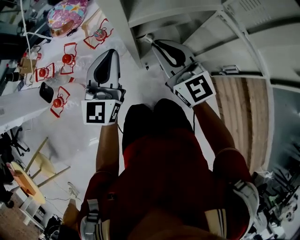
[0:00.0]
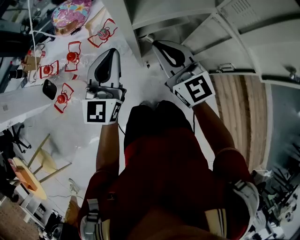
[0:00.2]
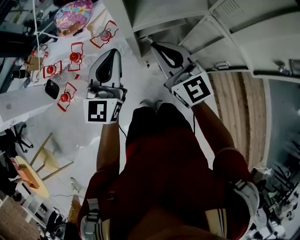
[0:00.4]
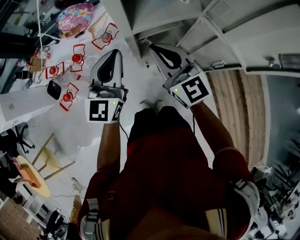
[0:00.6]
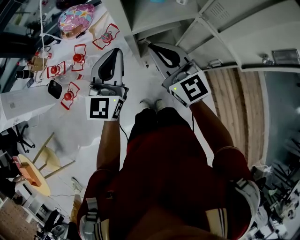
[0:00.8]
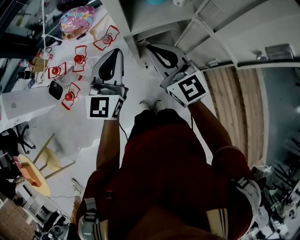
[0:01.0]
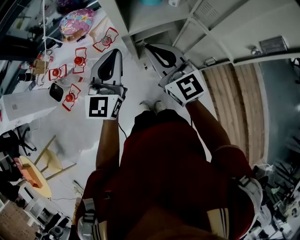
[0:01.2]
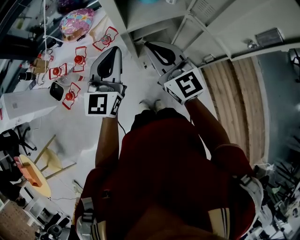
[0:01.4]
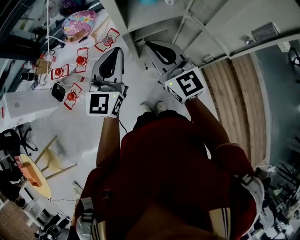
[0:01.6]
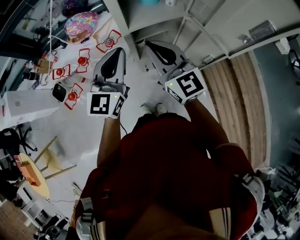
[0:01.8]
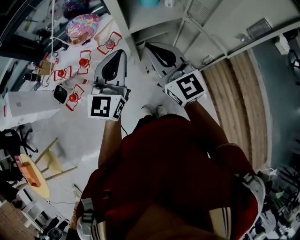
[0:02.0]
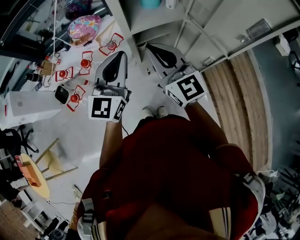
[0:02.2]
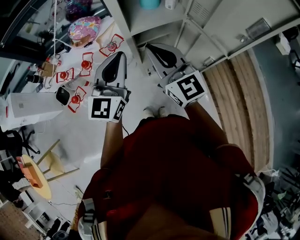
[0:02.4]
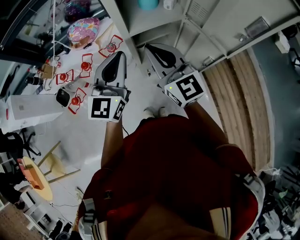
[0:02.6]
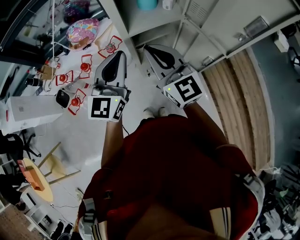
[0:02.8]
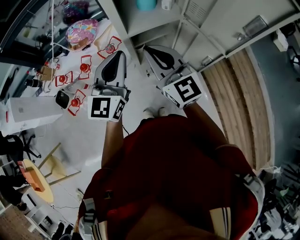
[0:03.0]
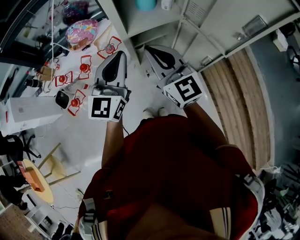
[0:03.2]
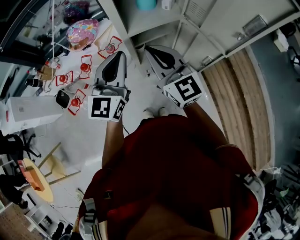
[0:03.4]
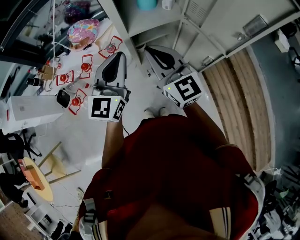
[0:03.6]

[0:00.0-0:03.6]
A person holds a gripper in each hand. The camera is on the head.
0:00.0 to 0:01.8: The grippers both shift upward and backward by roughly 20 cm.
0:01.8 to 0:03.6: There are only small adjustments of the grippers.

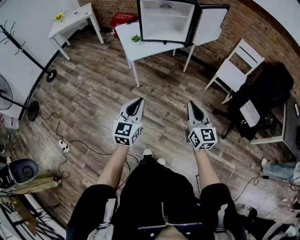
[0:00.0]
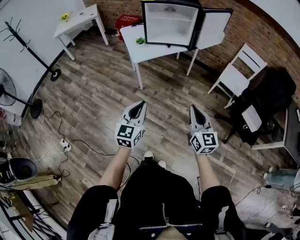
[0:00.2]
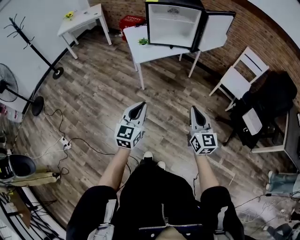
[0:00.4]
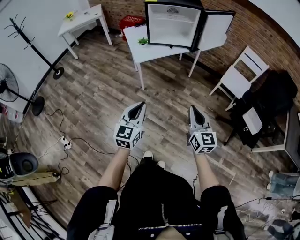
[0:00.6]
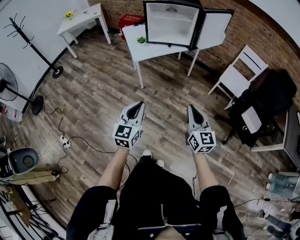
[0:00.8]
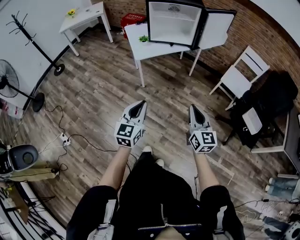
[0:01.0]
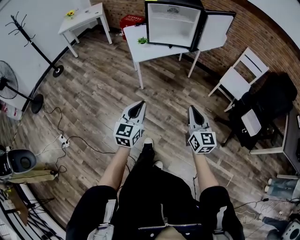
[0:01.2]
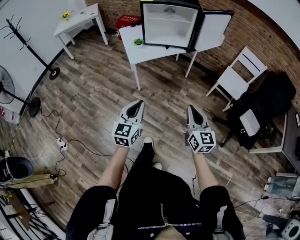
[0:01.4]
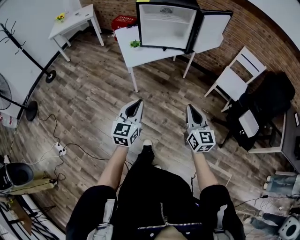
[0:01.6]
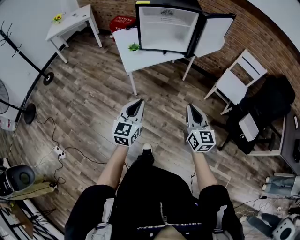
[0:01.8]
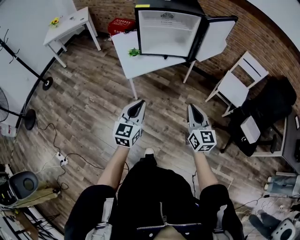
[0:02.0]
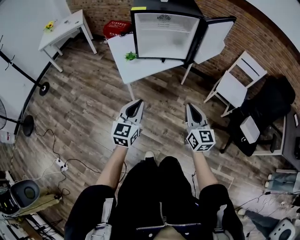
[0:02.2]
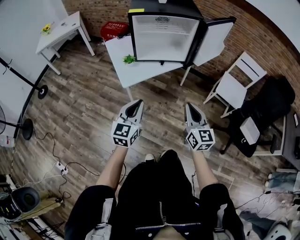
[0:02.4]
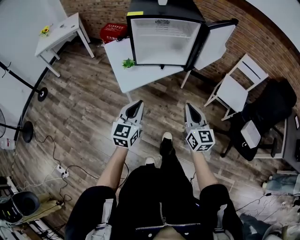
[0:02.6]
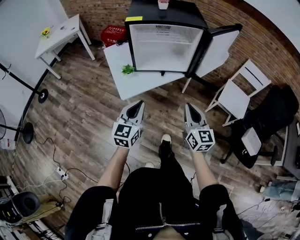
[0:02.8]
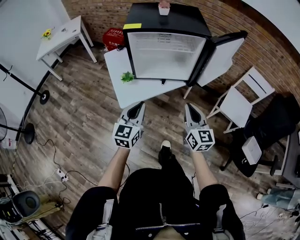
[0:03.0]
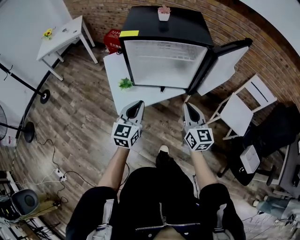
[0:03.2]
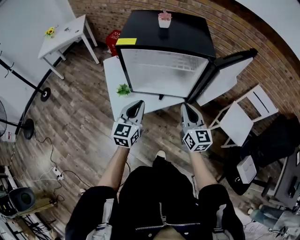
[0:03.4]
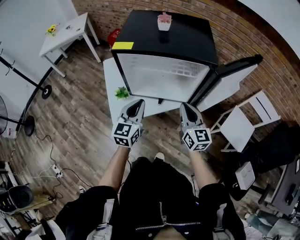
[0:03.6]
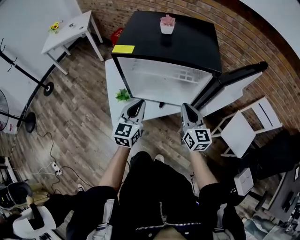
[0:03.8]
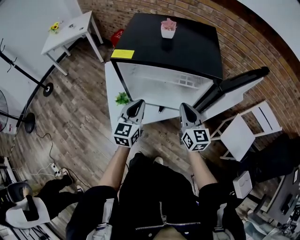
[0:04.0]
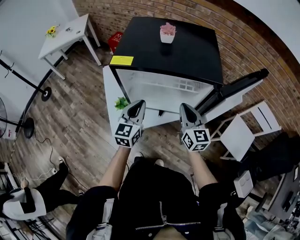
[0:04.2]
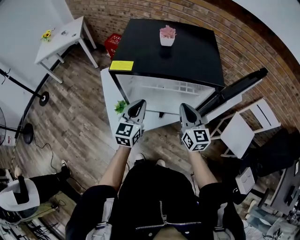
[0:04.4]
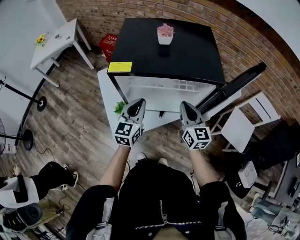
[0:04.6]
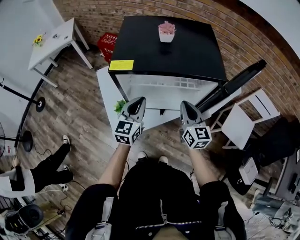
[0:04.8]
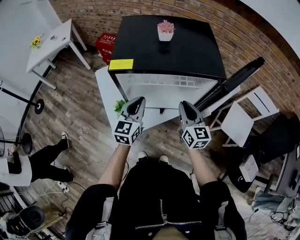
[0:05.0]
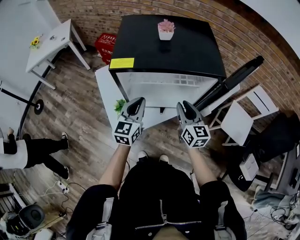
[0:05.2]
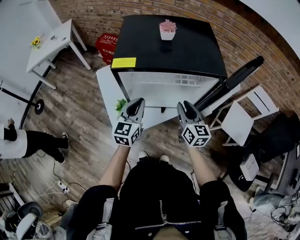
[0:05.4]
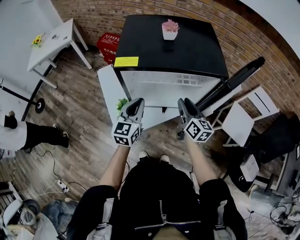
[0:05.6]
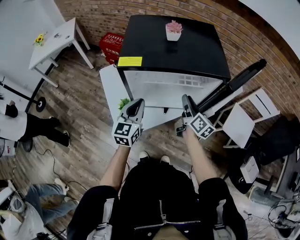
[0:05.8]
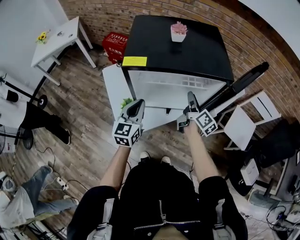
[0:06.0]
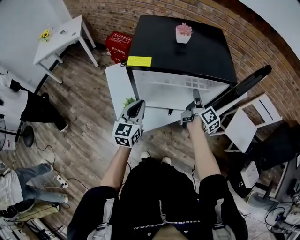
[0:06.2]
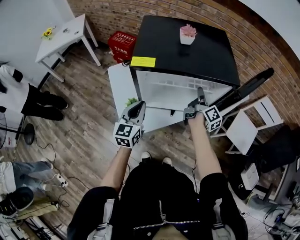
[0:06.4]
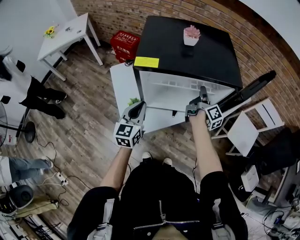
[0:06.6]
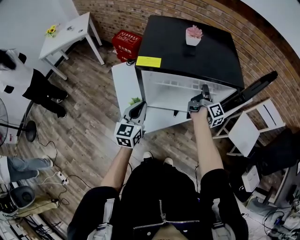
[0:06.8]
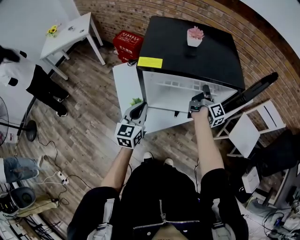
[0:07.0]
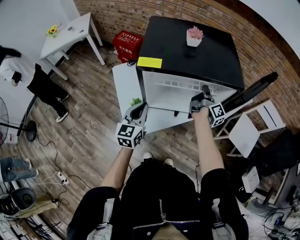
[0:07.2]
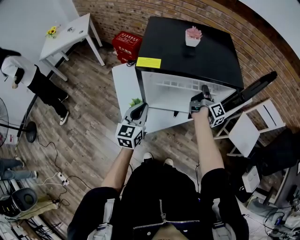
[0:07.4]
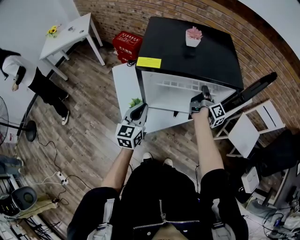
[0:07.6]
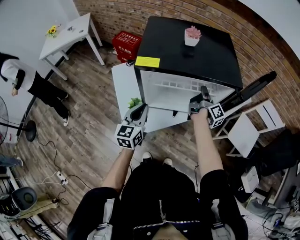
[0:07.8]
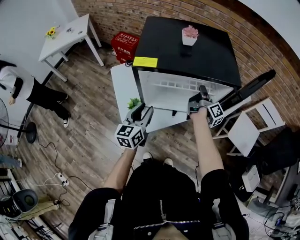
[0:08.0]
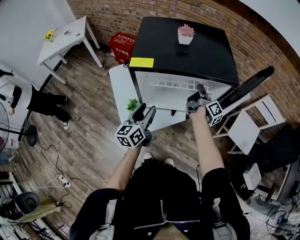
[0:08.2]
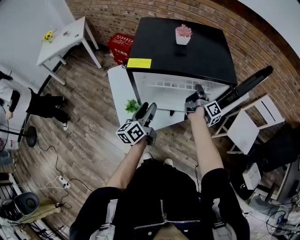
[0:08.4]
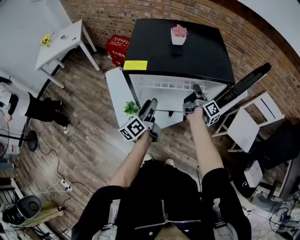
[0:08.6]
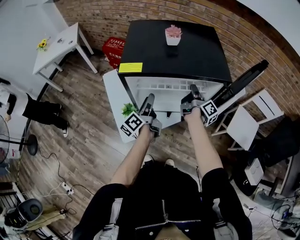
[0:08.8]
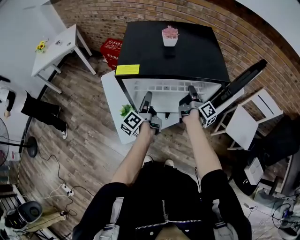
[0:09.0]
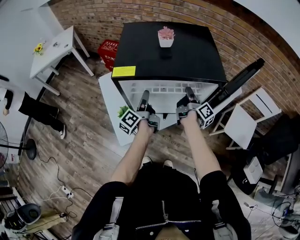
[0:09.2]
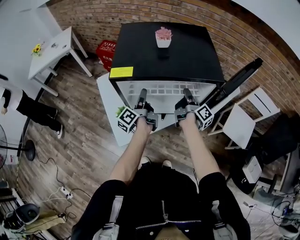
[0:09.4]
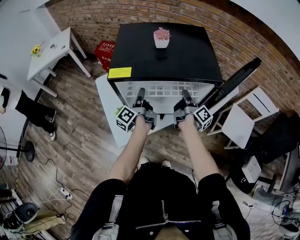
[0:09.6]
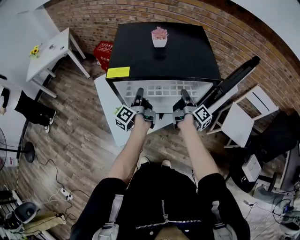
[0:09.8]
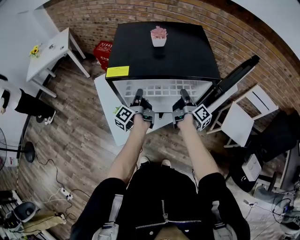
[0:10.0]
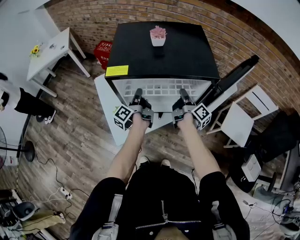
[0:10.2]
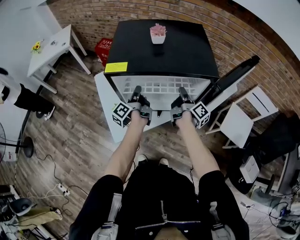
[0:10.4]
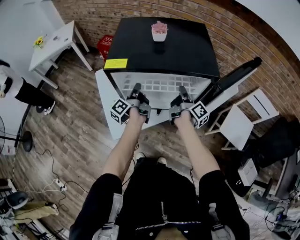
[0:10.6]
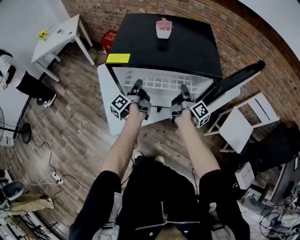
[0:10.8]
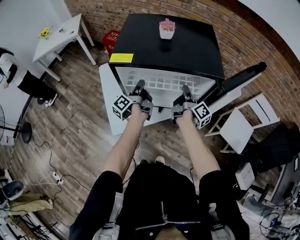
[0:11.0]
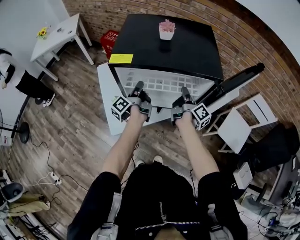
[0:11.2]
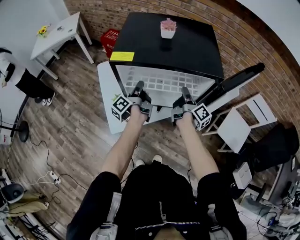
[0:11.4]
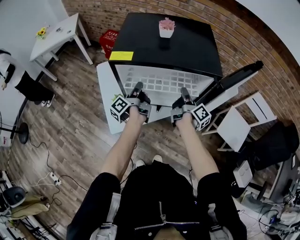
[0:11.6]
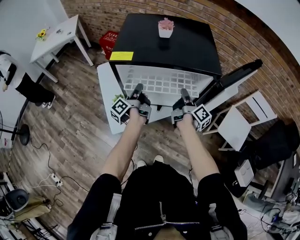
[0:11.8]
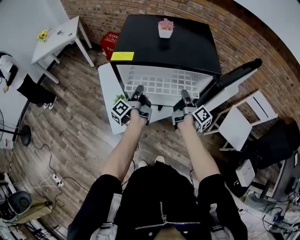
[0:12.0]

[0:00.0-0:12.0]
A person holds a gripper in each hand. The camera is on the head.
0:00.0 to 0:01.6: The two grippers go about 5 cm forward.
0:01.6 to 0:03.0: The two grippers go about 35 cm forward.
0:03.0 to 0:04.4: The two grippers go some 25 cm forward.
0:04.4 to 0:06.0: The left gripper moves to the left, about 5 cm. Meanwhile the right gripper changes place by approximately 5 cm, rolls clockwise, seen from behind, by about 50 degrees, and opens.
0:06.0 to 0:07.6: The right gripper is displaced forward by approximately 5 cm, changes its angle by roughly 30 degrees, and closes.
0:07.6 to 0:09.0: The left gripper travels forward by some 10 cm, rolls counterclockwise, seen from behind, by some 60 degrees, and opens.
0:09.0 to 0:10.4: The left gripper closes up.
0:10.4 to 0:12.0: The grippers make only small movements.

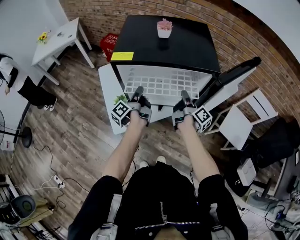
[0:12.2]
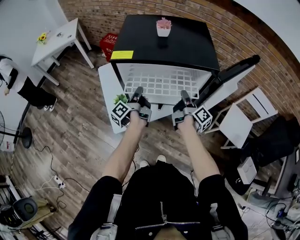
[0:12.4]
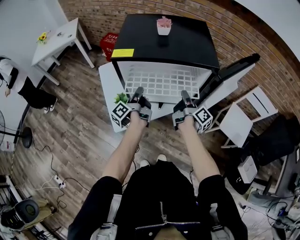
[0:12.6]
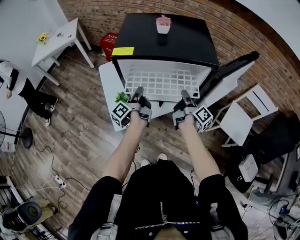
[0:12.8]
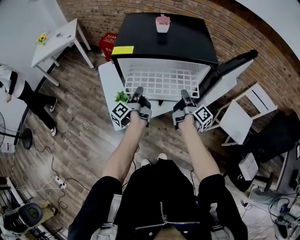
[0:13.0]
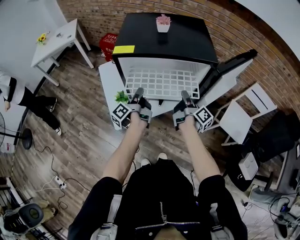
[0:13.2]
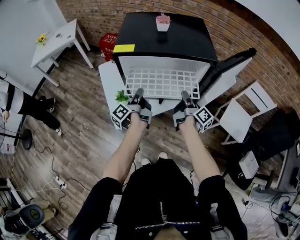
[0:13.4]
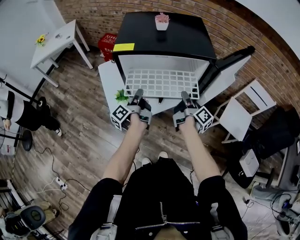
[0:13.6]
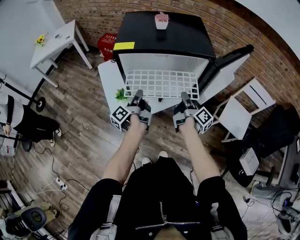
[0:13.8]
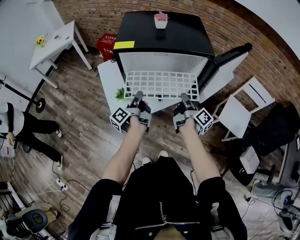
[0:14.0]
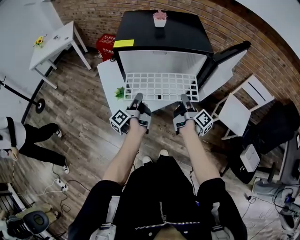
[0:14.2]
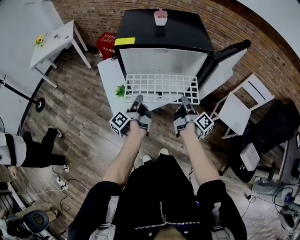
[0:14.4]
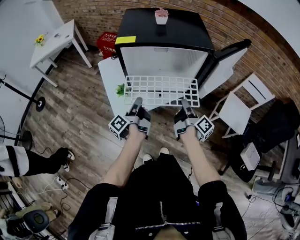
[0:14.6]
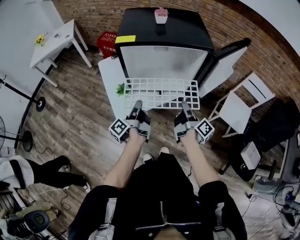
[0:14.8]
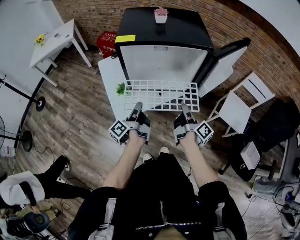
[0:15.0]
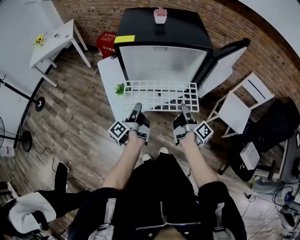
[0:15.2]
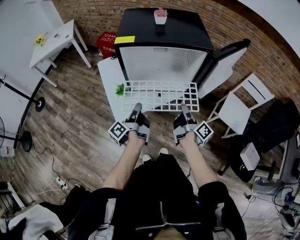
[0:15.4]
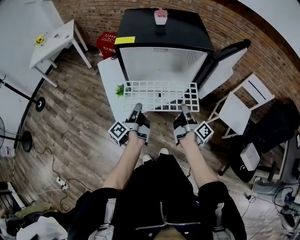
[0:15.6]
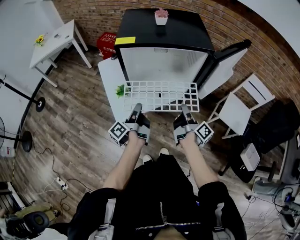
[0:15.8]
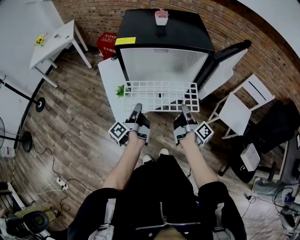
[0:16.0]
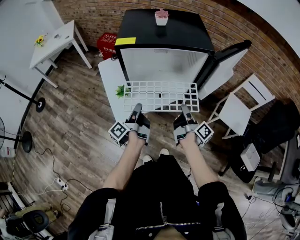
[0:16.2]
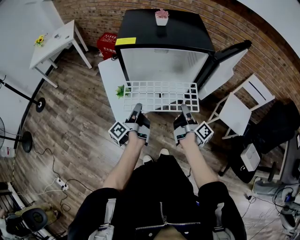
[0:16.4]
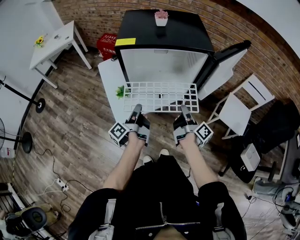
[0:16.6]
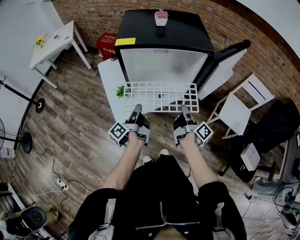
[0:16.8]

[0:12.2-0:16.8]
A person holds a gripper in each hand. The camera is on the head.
0:12.2 to 0:13.8: The grippers both shift backward by some 10 cm.
0:13.8 to 0:15.2: Both grippers move backward, roughly 10 cm.
0:15.2 to 0:16.8: Neither gripper changes place.

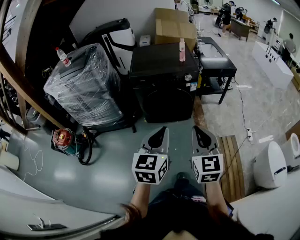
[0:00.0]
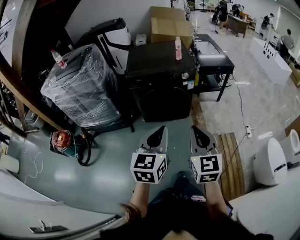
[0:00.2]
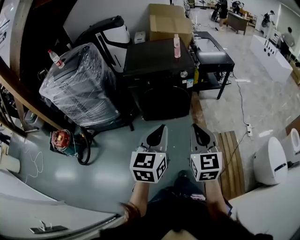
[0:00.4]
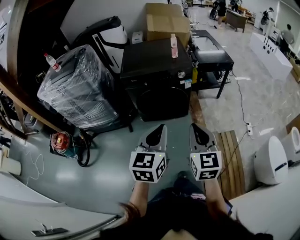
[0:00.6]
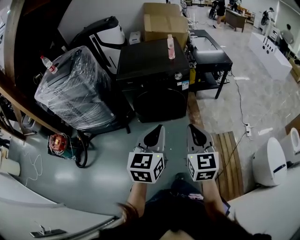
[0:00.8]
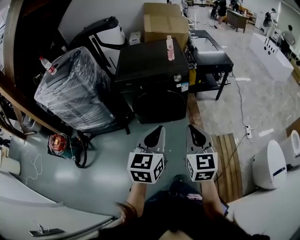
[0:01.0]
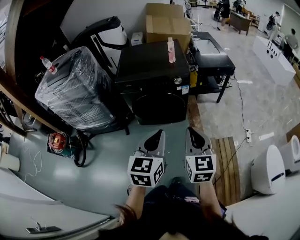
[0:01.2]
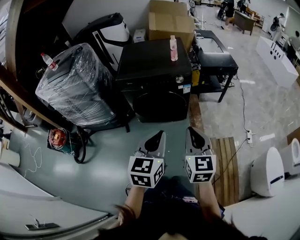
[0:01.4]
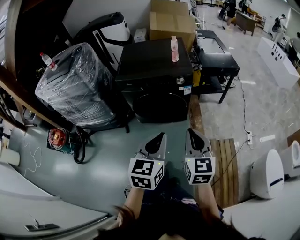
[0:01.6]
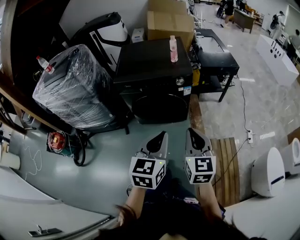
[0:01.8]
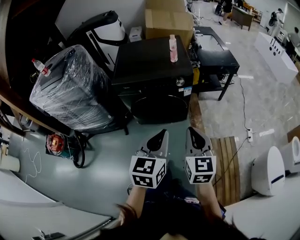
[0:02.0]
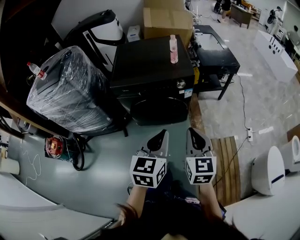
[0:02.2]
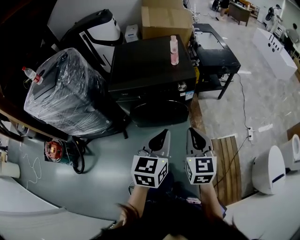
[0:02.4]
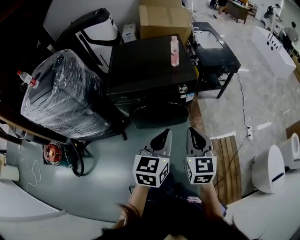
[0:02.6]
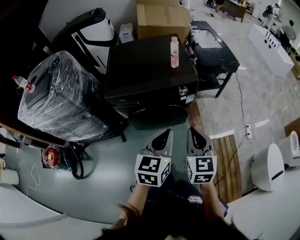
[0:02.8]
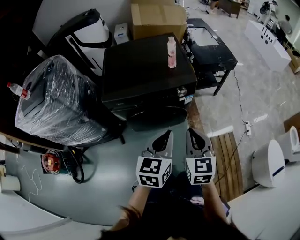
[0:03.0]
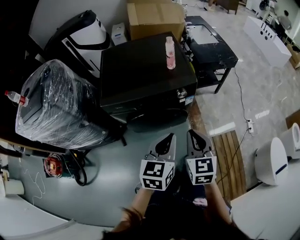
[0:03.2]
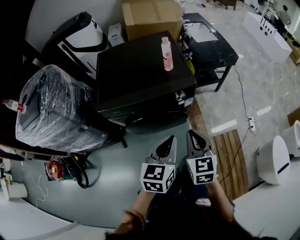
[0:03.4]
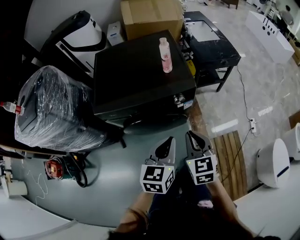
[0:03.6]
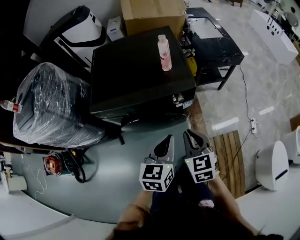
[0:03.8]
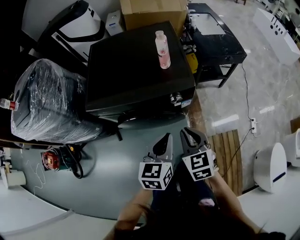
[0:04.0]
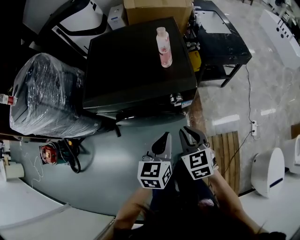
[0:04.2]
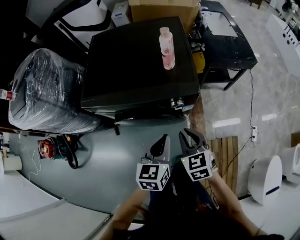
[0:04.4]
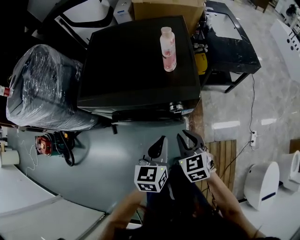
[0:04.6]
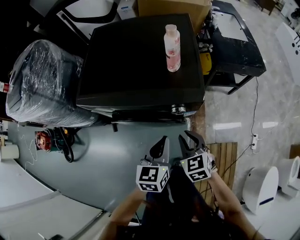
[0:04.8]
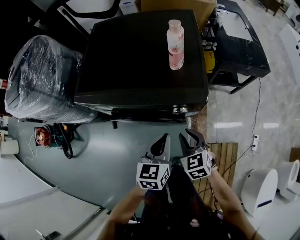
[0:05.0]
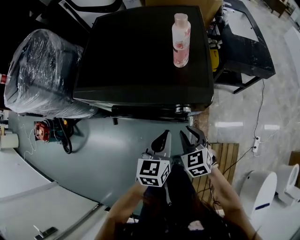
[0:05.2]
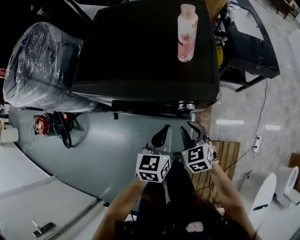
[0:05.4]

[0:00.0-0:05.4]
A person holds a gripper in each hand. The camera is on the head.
0:00.0 to 0:01.4: Both grippers travel together forward and to the right, approximately 15 cm.
0:01.4 to 0:02.8: Both grippers move forward, about 20 cm.
0:02.8 to 0:04.0: The grippers both shift forward and downward by about 15 cm. The right gripper changes its angle by about 20 degrees.
0:04.0 to 0:05.4: Both grippers travel together downward and forward, some 20 cm. The right gripper swivels about 20 degrees.
